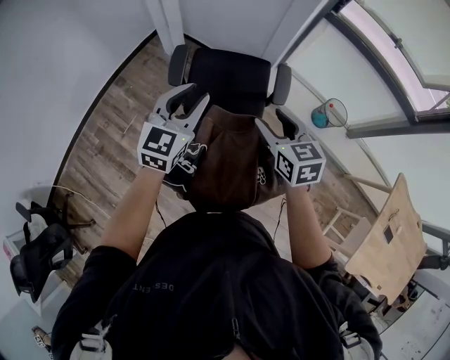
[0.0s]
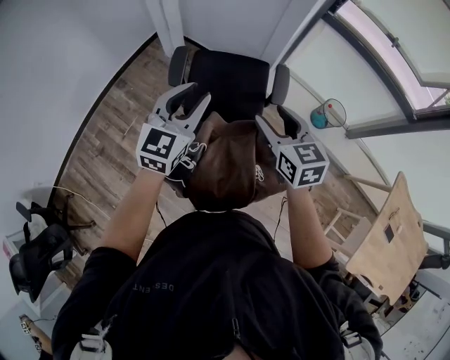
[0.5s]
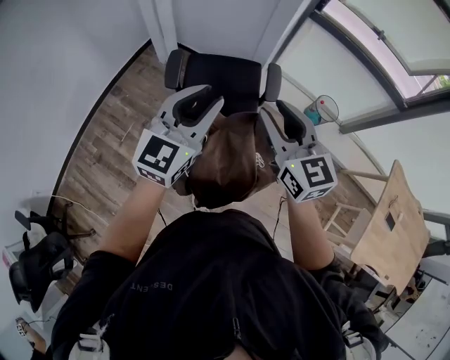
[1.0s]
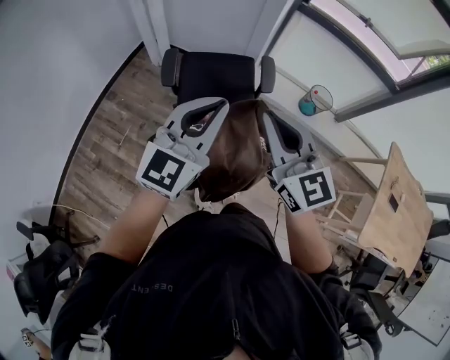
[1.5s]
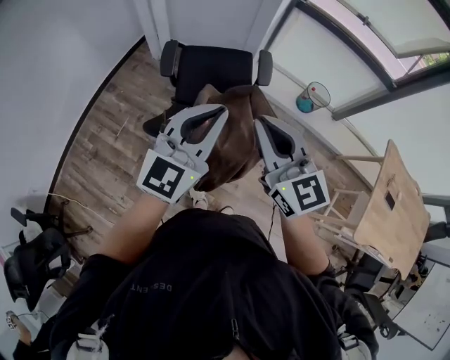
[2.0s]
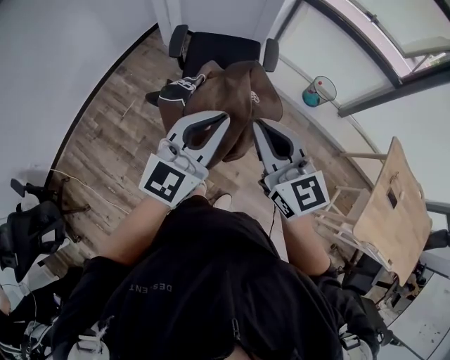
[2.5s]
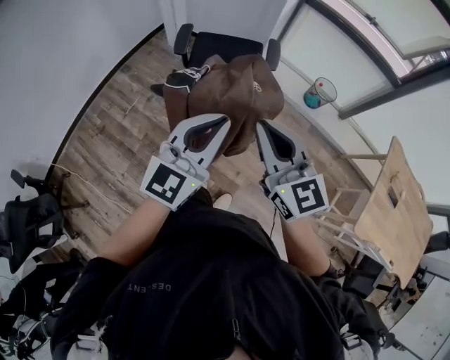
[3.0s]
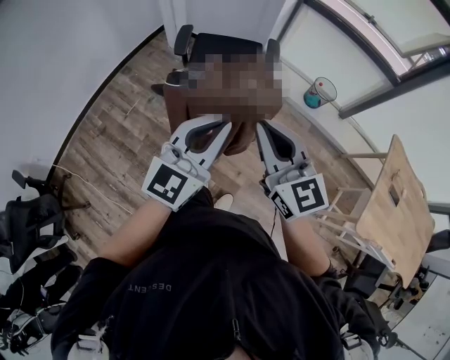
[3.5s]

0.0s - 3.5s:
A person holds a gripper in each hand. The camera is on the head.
0.0s - 2.0s: Both grippers move backward and upward, roughly 25 cm. The left gripper closes its fingers, while the right gripper changes its angle by roughly 30 degrees, and closes.
2.0s - 3.5s: The grippers both shift backward by some 15 cm.

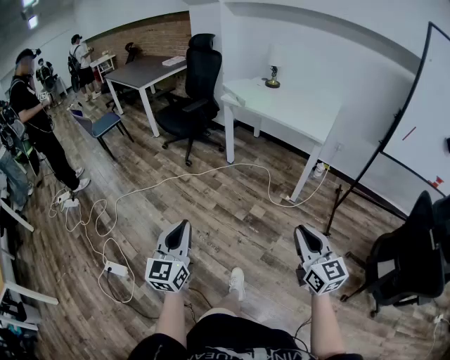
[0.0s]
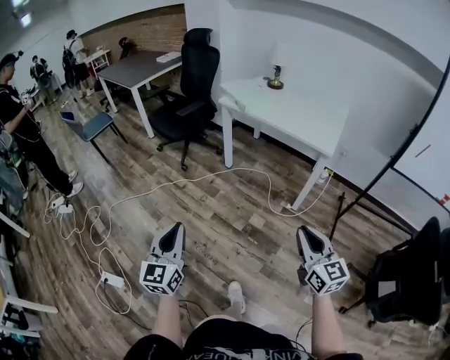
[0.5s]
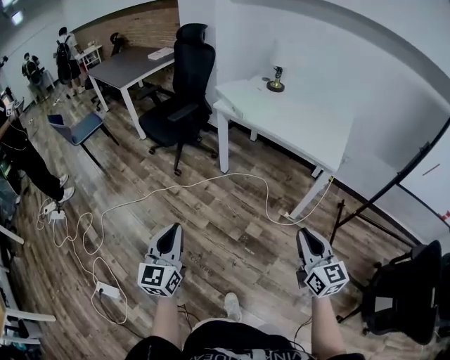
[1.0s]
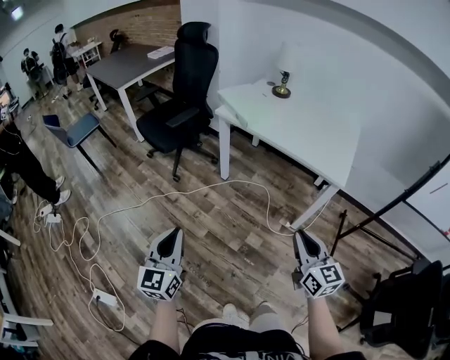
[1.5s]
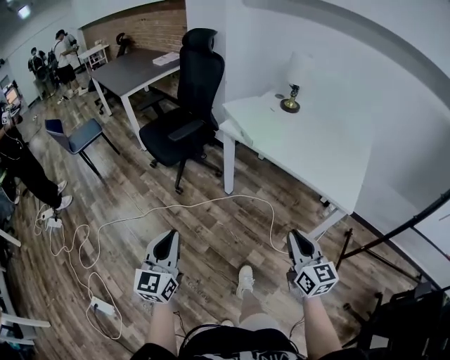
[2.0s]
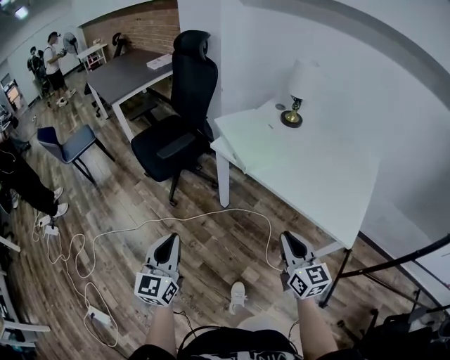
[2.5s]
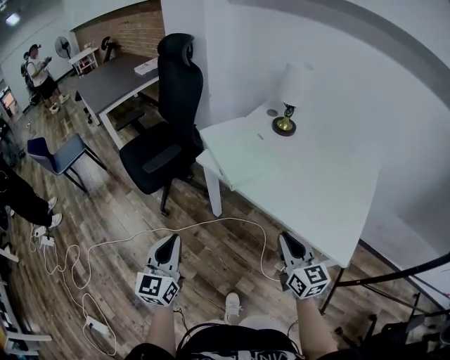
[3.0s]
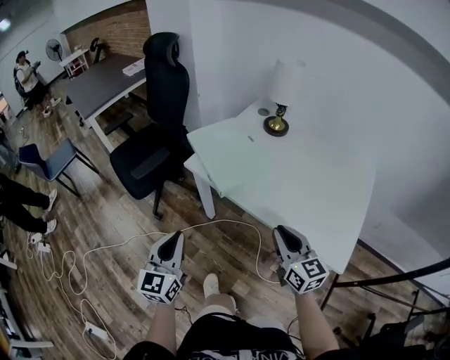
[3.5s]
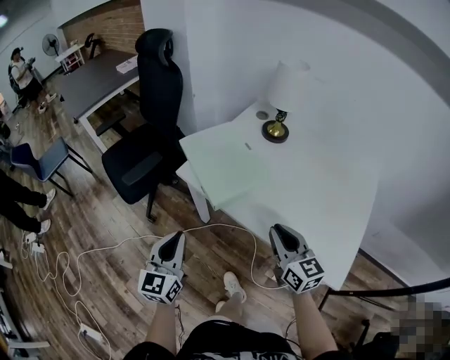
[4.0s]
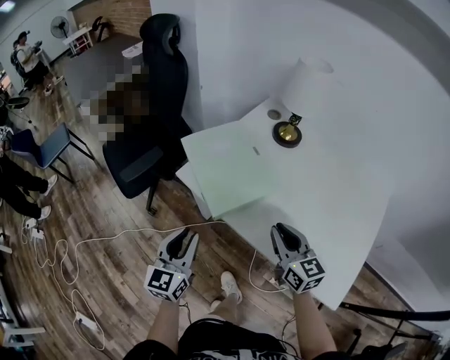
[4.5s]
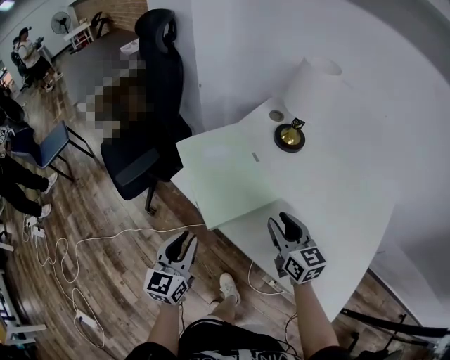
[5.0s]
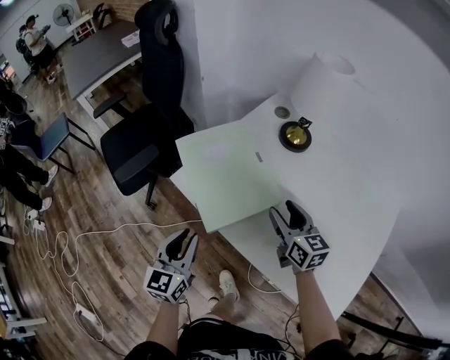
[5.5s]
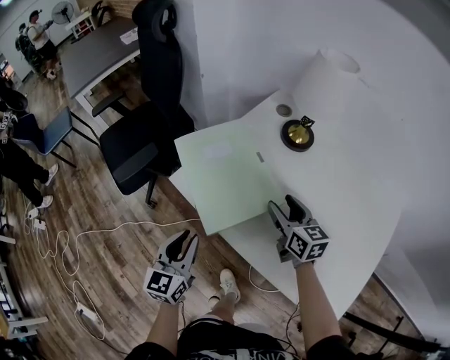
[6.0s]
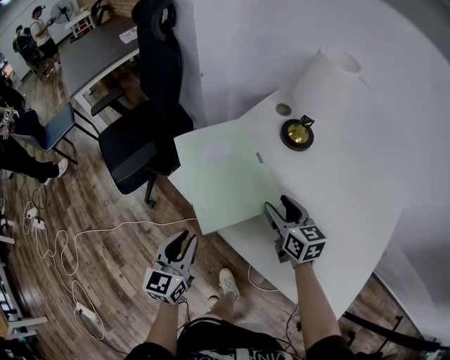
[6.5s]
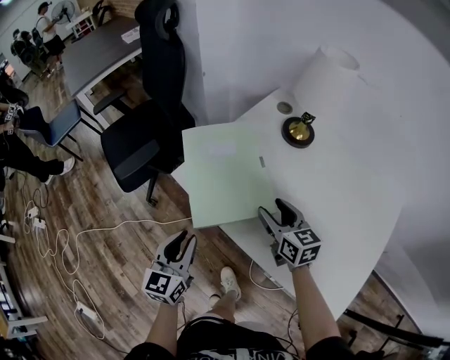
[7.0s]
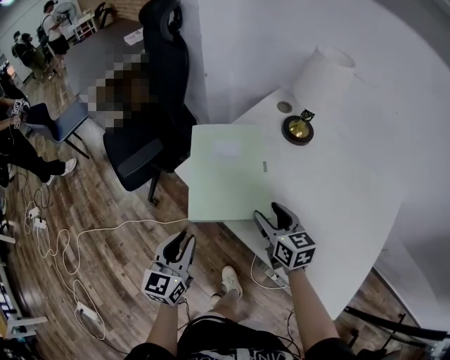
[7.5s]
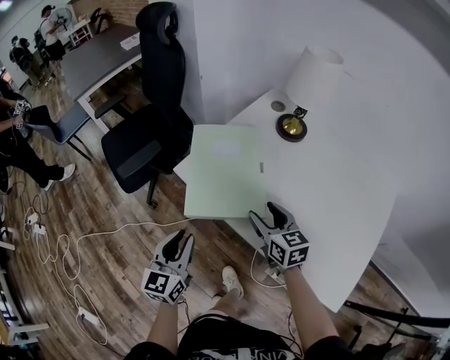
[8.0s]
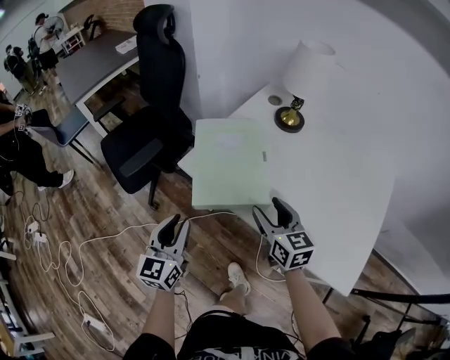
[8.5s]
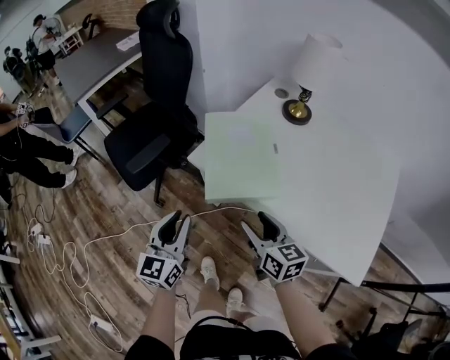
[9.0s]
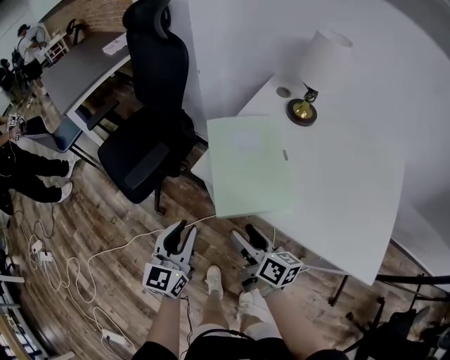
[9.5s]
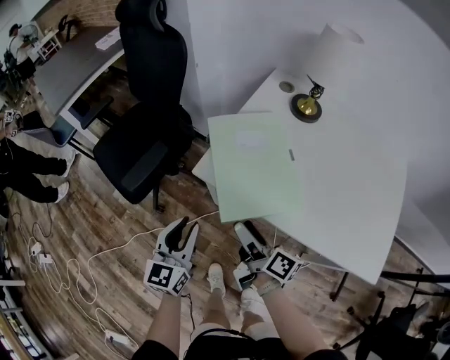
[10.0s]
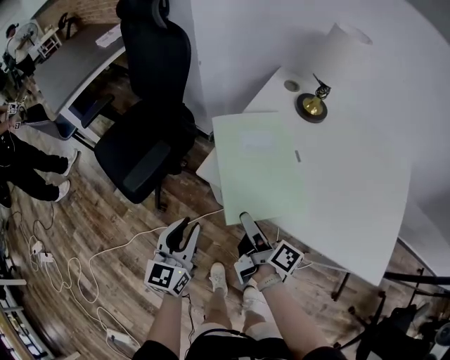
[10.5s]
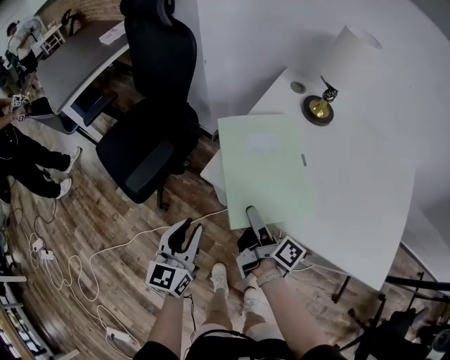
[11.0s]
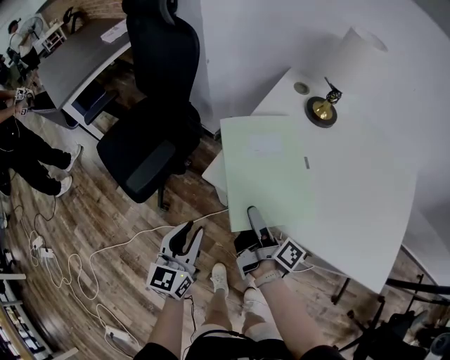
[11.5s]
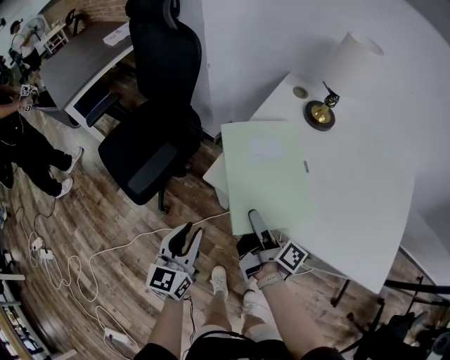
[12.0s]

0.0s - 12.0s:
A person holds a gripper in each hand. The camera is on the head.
0.0s - 2.0s: Both grippers are carried forward, roughly 50 cm.
2.0s - 4.0s: The left gripper heads forward and to the right, covering approximately 40 cm; the right gripper moves forward, approximately 35 cm.
4.0s - 6.0s: The left gripper heads forward, downward and to the right, covering about 15 cm, while the right gripper shifts approximately 25 cm forward, and opens.
6.0s - 8.0s: The right gripper moves backward and to the left, about 10 cm, while the left gripper shifts about 5 cm backward.
8.0s - 10.0s: The right gripper travels to the left by about 15 cm, and rotates around the line of its fingers by some 50 degrees, clockwise from behind. Meanwhile the left gripper moves to the left and forward, some 10 cm.
10.0s - 12.0s: The right gripper moves some 5 cm, and swivels about 20 degrees.

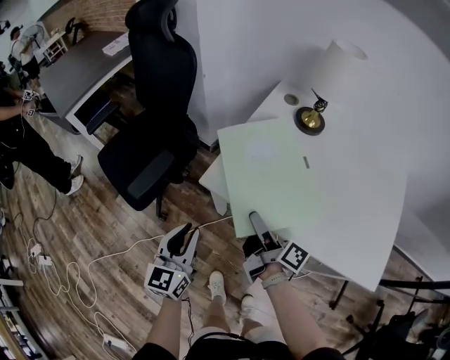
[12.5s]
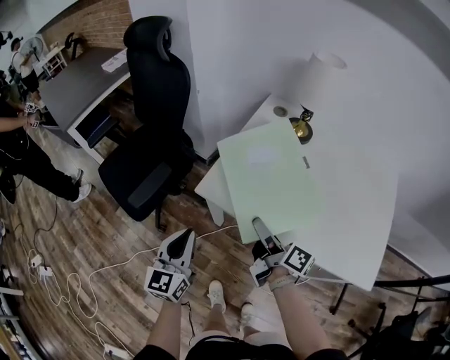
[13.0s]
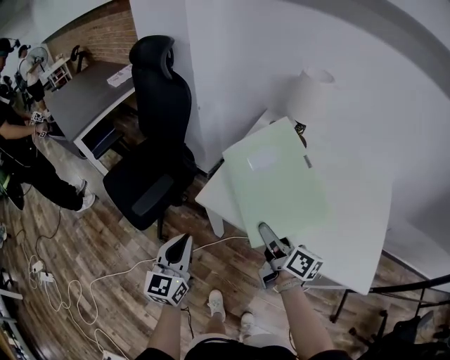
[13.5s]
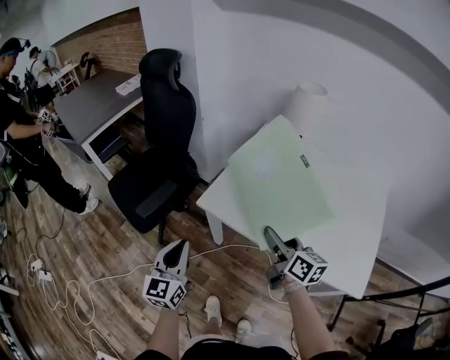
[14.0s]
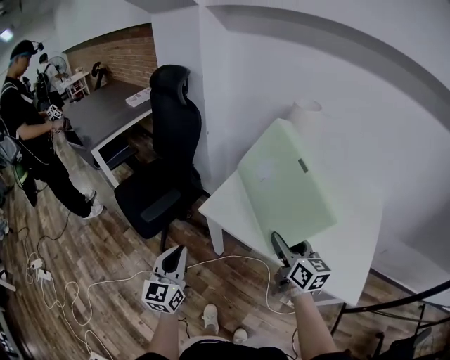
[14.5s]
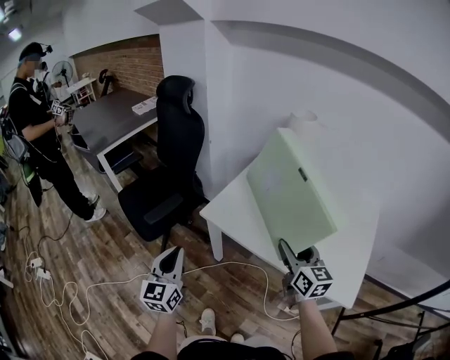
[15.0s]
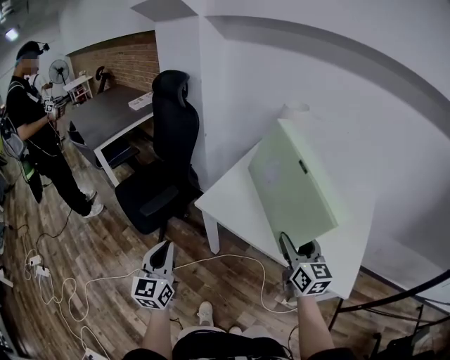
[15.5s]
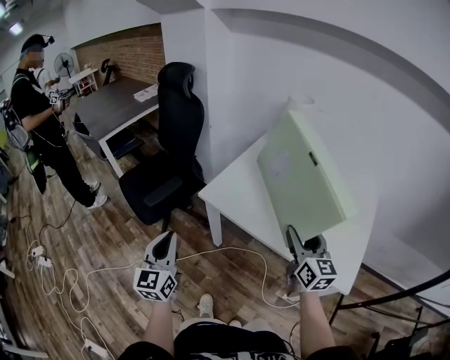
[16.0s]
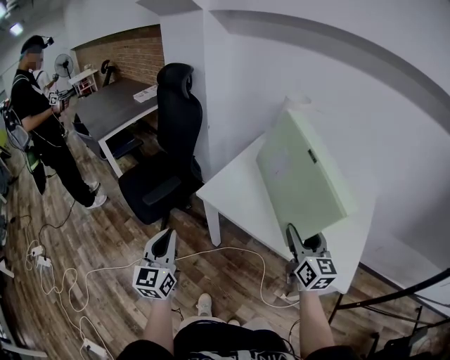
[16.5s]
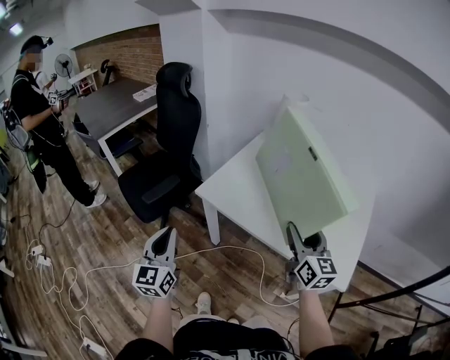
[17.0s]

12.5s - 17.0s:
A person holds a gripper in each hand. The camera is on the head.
12.5s - 14.5s: The right gripper travels upward, to the right and backward by roughly 20 cm, and rolls counterclockwise, seen from behind, by roughly 50 degrees. The left gripper moves upward and backward, roughly 15 cm.
14.5s - 17.0s: The right gripper goes roughly 10 cm backward and to the right; the left gripper heads backward, covering roughly 5 cm.

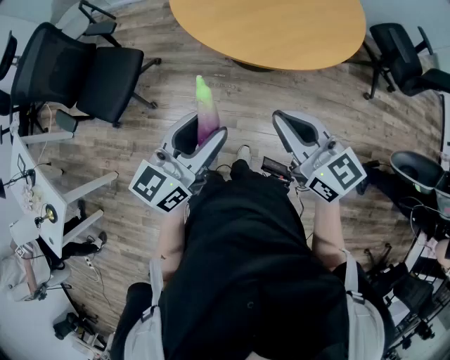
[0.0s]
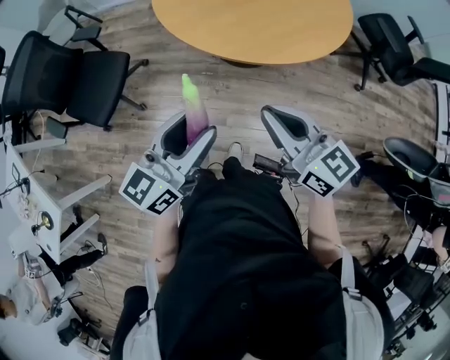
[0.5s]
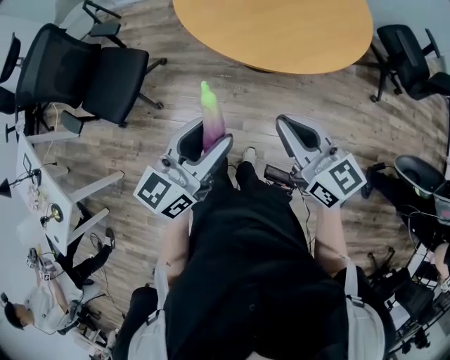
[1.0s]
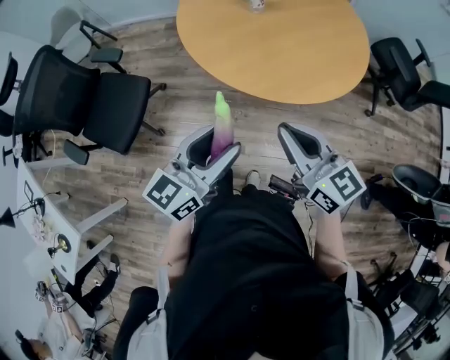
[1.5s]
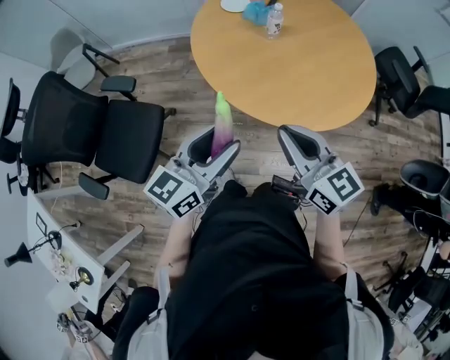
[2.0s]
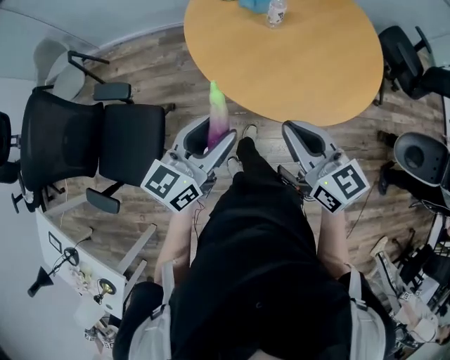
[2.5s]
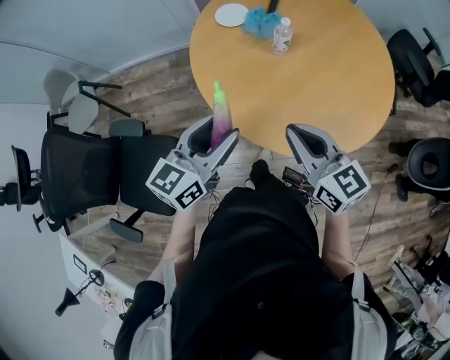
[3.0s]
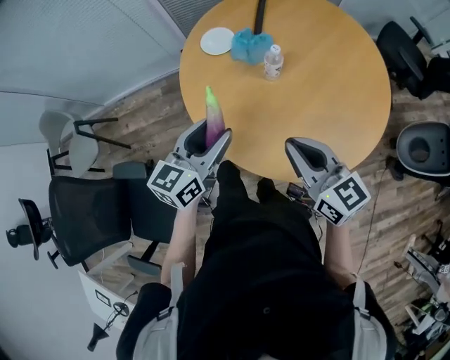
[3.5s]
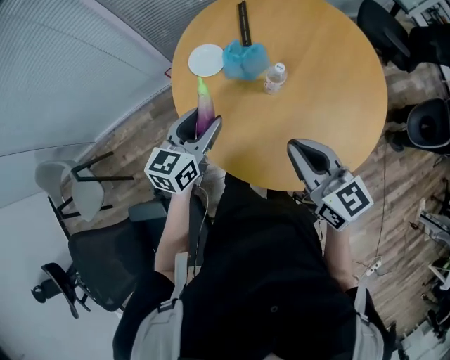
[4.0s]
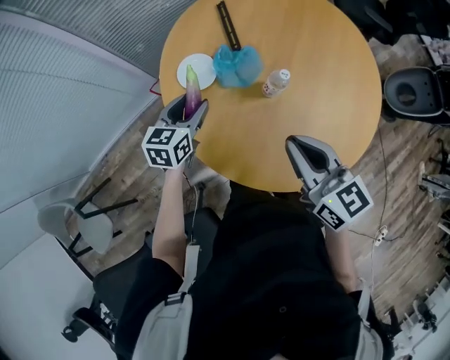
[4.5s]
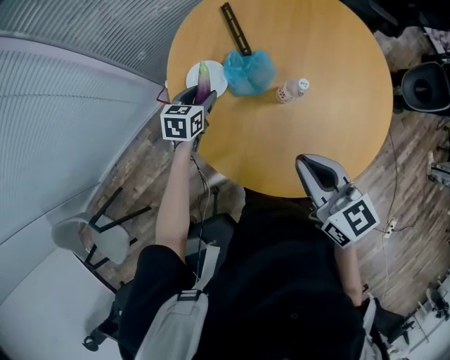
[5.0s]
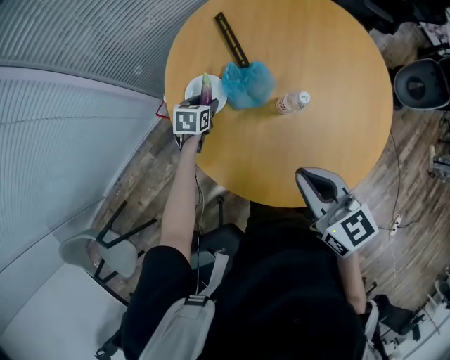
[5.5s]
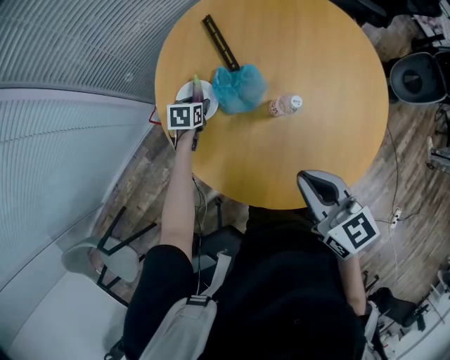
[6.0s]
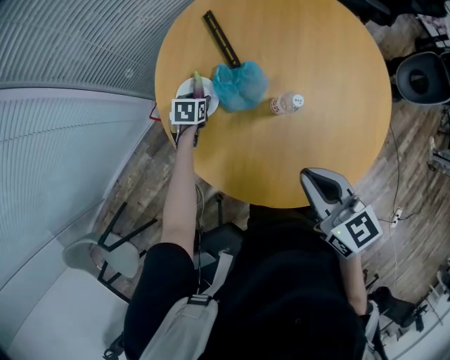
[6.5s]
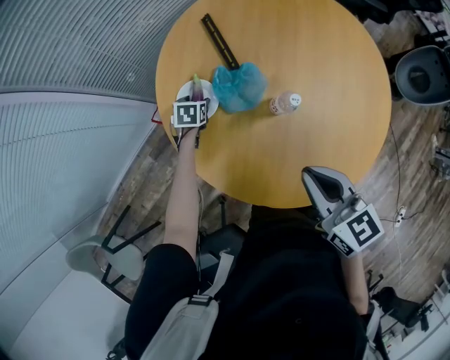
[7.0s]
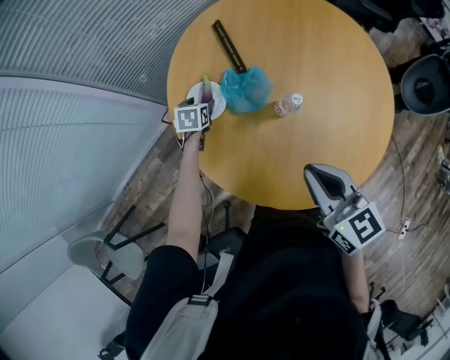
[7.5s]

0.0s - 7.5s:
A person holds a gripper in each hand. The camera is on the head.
0.0s - 2.0s: Both grippers travel together forward and to the left, about 25 cm.
2.0s - 4.0s: The grippers both shift forward by approximately 40 cm. The left gripper turns by approximately 30 degrees. The right gripper changes its angle by approximately 30 degrees.
4.0s - 5.5s: The right gripper heads to the left and forward, covering roughly 10 cm, while the left gripper moves forward and downward, approximately 35 cm, and tips its fingers downward by approximately 30 degrees.
5.5s - 7.5s: The grippers make only small movements.
